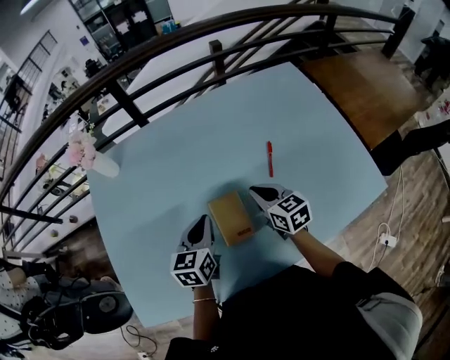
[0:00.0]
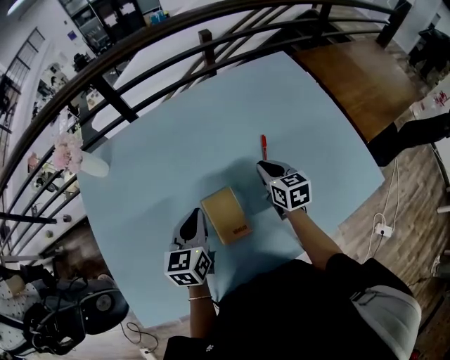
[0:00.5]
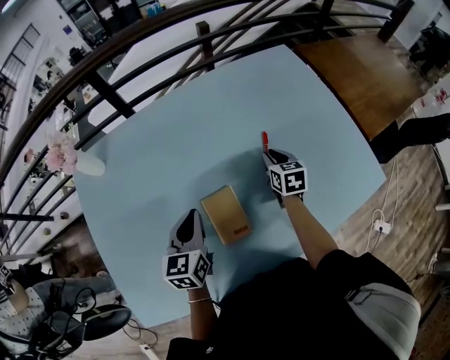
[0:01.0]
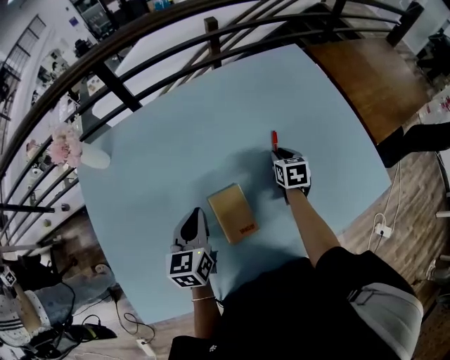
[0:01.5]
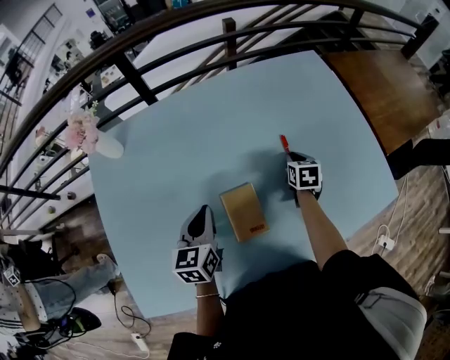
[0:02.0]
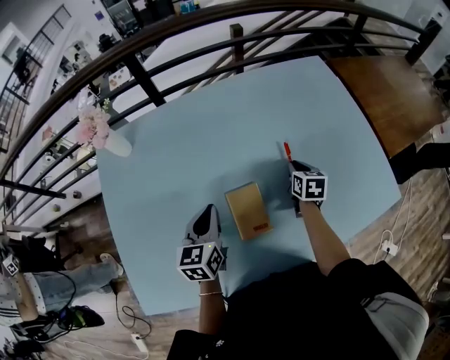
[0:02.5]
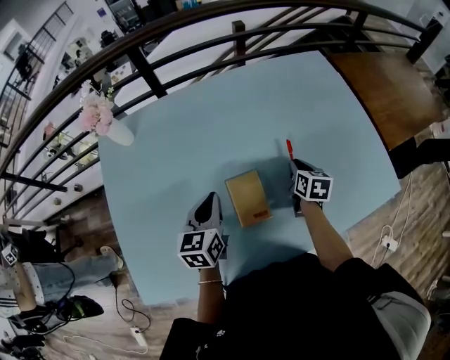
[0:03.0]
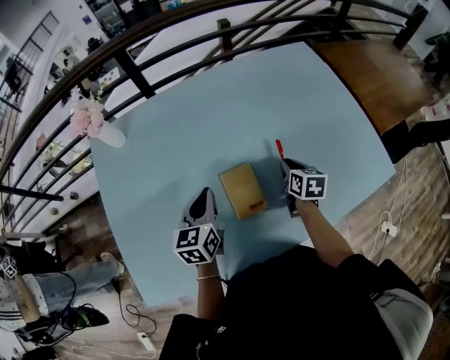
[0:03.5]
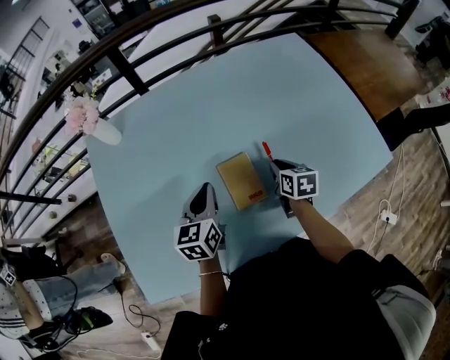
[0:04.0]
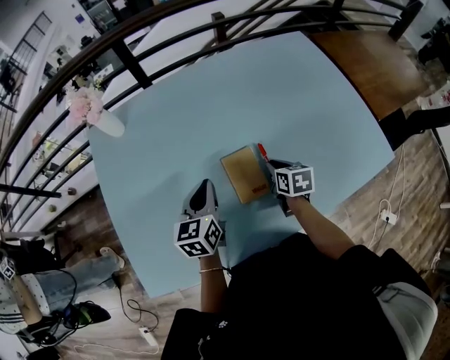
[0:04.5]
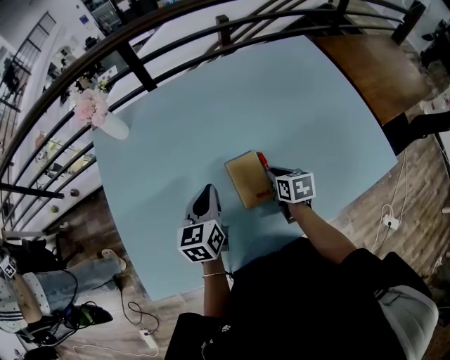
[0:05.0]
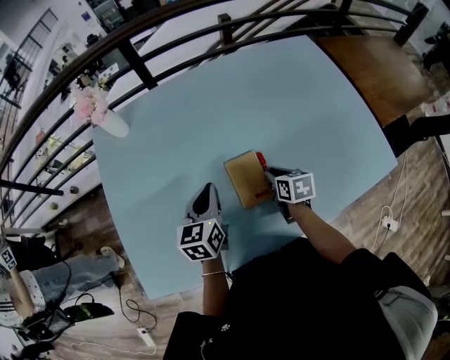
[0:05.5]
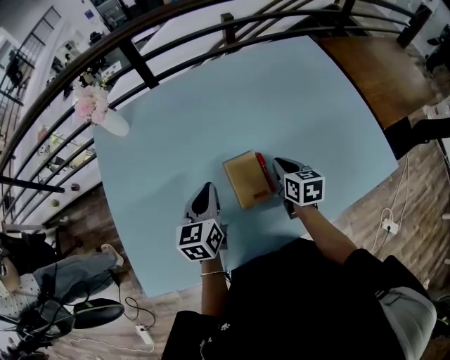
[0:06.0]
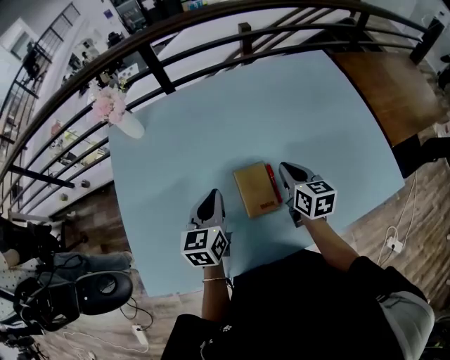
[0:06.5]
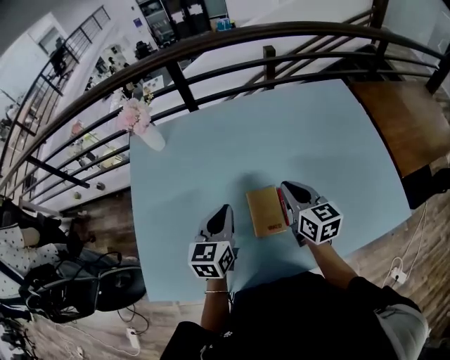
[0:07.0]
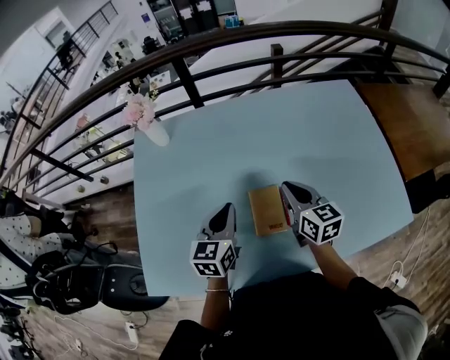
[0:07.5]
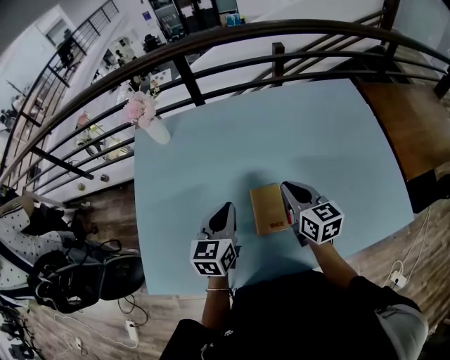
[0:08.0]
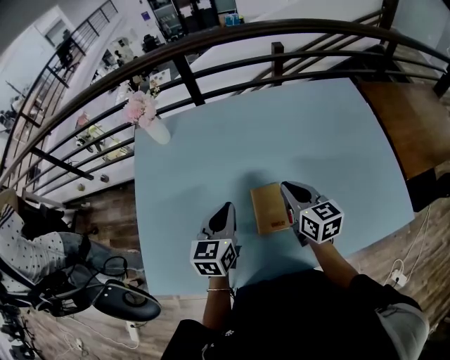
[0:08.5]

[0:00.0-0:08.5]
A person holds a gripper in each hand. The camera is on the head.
0:00.0 to 0:02.0: The right gripper travels forward, to the right and downward by roughly 20 cm, and changes its angle by roughly 40 degrees.
0:02.0 to 0:04.0: The right gripper travels backward and to the left by approximately 15 cm.
0:04.0 to 0:06.5: The right gripper shifts roughly 10 cm upward.
0:06.5 to 0:08.5: The right gripper heads upward, covering approximately 5 cm.

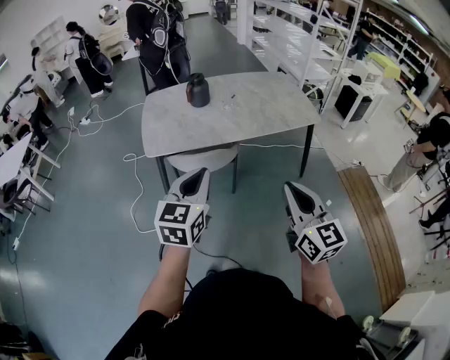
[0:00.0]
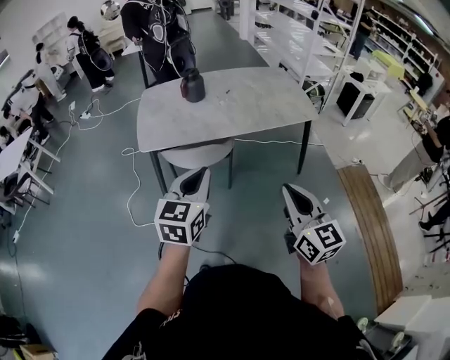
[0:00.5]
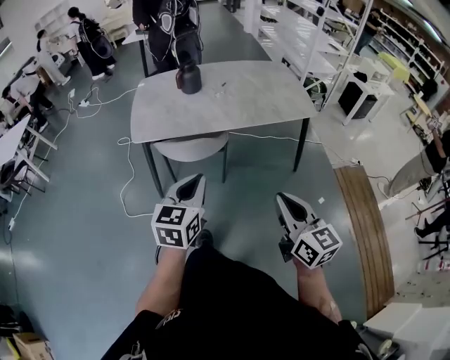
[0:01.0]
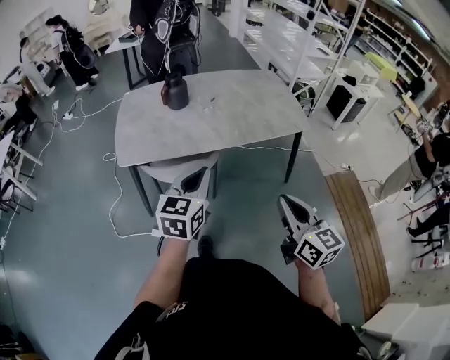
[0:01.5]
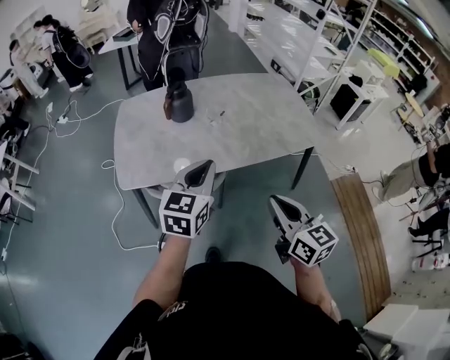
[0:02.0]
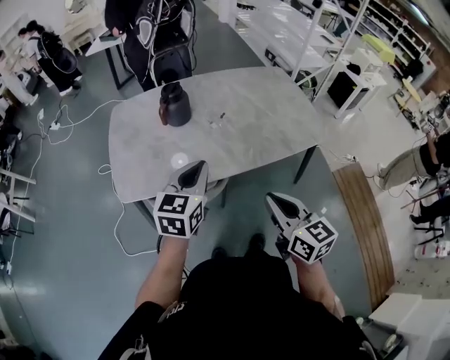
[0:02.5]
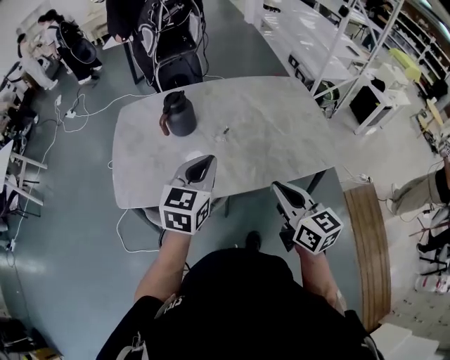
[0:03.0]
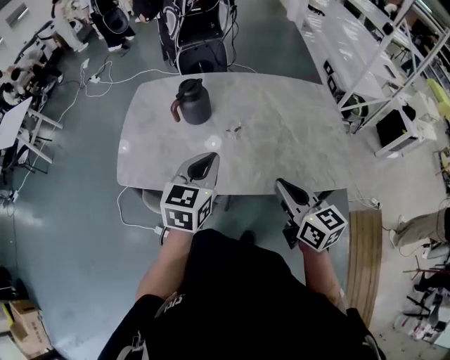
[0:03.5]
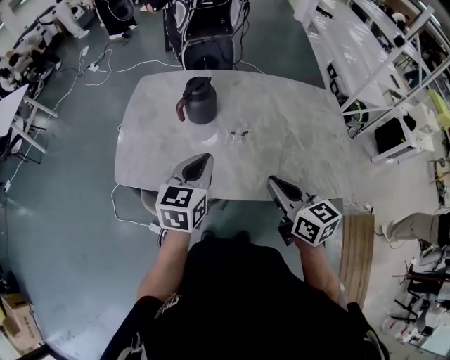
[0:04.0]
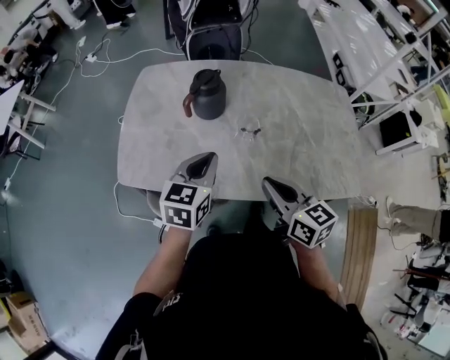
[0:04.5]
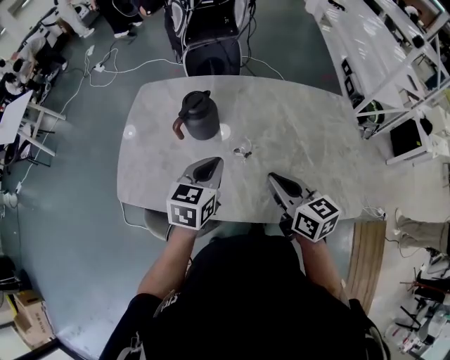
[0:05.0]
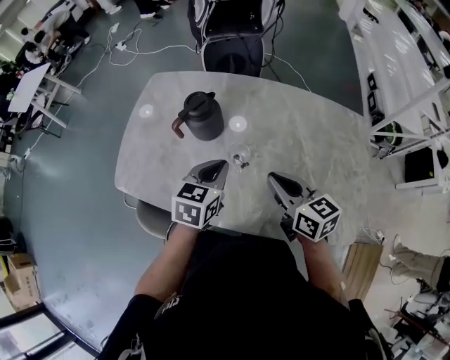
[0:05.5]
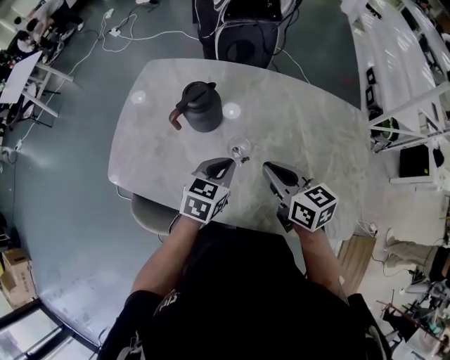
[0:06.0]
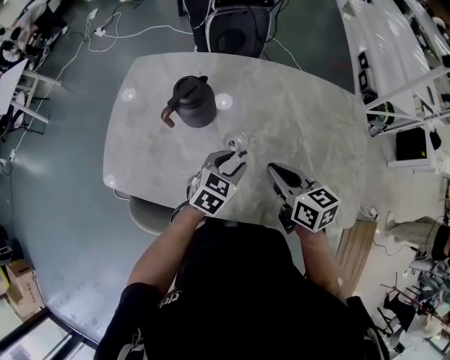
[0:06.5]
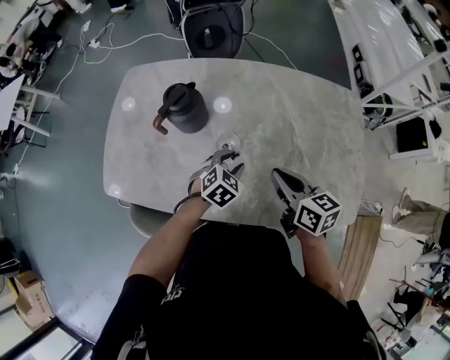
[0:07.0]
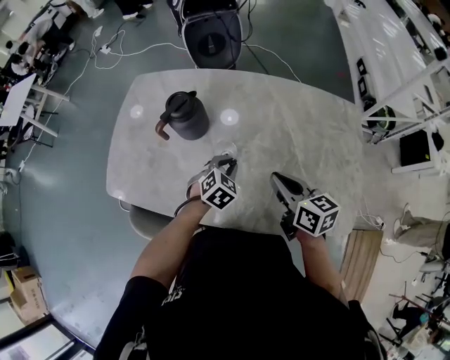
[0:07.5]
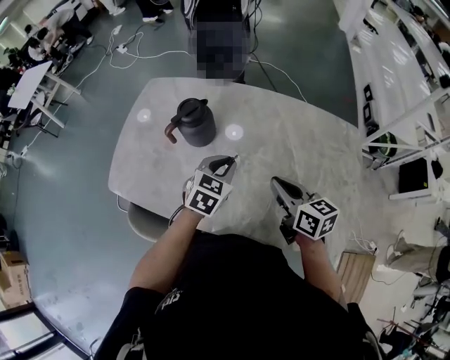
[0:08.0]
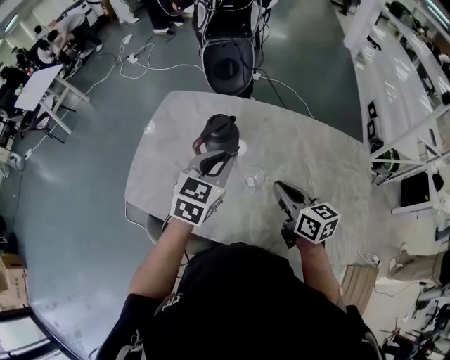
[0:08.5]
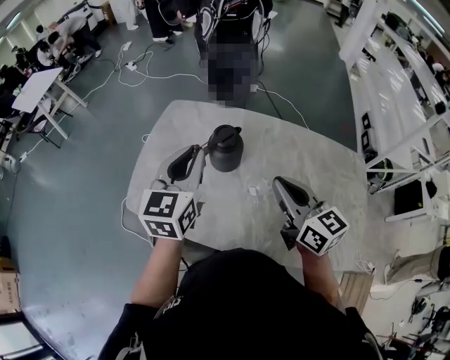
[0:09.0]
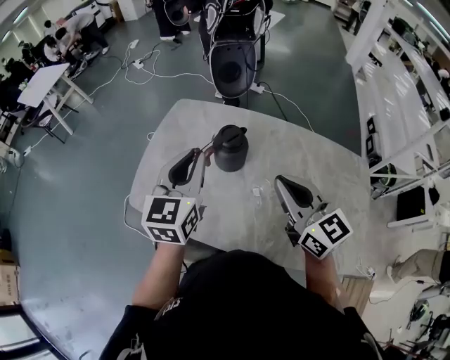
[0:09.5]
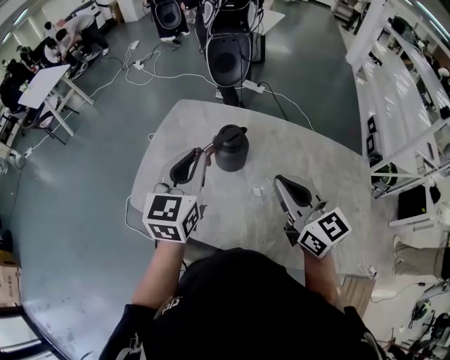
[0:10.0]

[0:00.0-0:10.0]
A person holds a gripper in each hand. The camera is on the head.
0:00.0 to 0:02.0: Both grippers move forward, some 25 cm.
0:02.0 to 0:04.0: Both grippers move forward, about 25 cm. The left gripper changes its angle by approximately 20 degrees. The right gripper rotates some 20 degrees.
0:04.0 to 0:06.0: The left gripper moves forward, downward and to the right, roughly 20 cm. The right gripper moves forward, some 20 cm.
0:06.0 to 0:08.0: The right gripper is displaced to the right by some 5 cm, while the left gripper goes downward and returns, about 10 cm each way, and opens, then closes again.
0:08.0 to 0:10.0: The left gripper goes some 30 cm to the left and upward, and rotates roughly 40 degrees, while the right gripper goes approximately 20 cm upward and to the left, and rotates some 30 degrees.

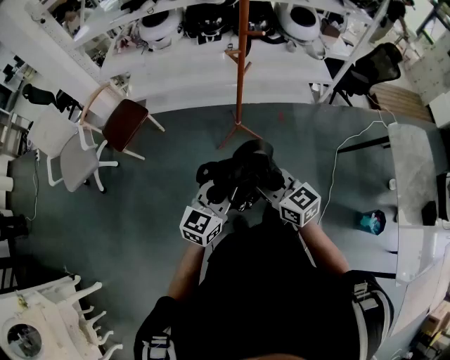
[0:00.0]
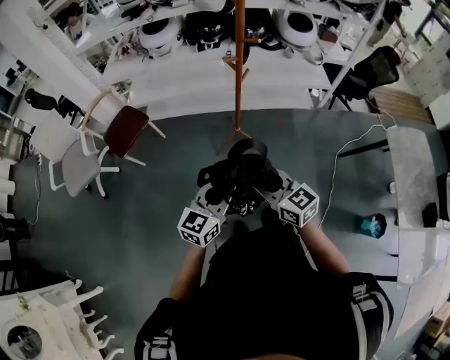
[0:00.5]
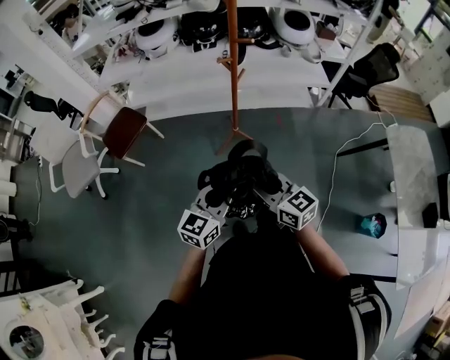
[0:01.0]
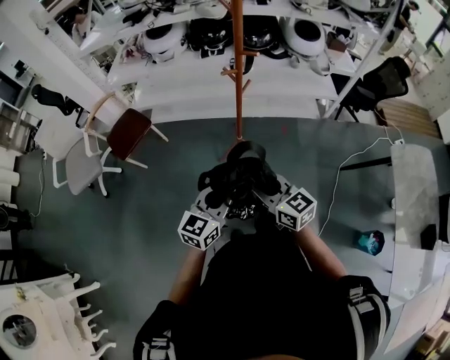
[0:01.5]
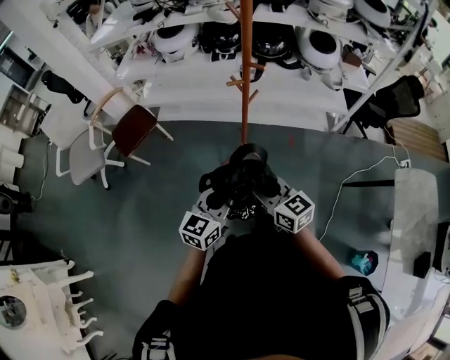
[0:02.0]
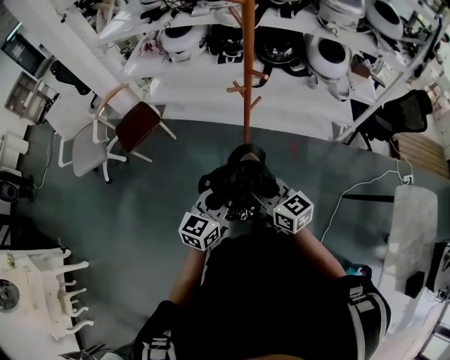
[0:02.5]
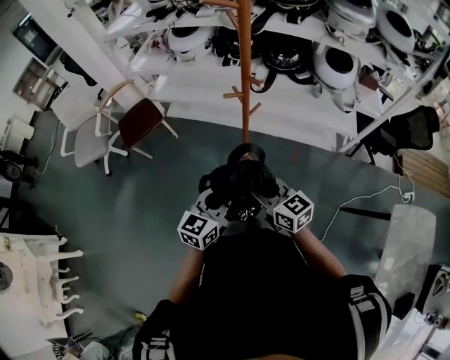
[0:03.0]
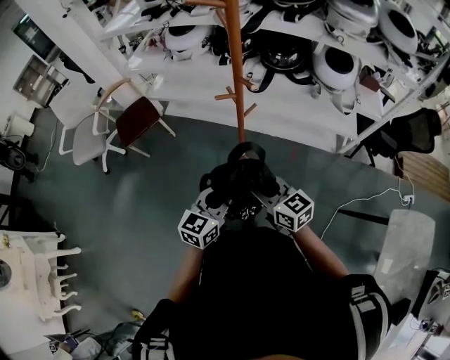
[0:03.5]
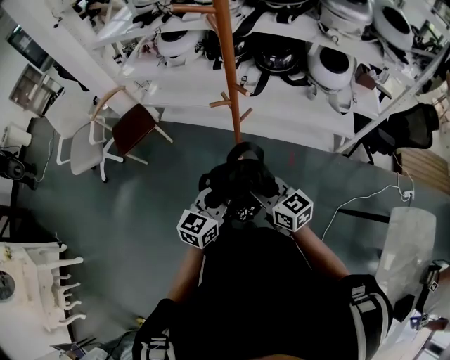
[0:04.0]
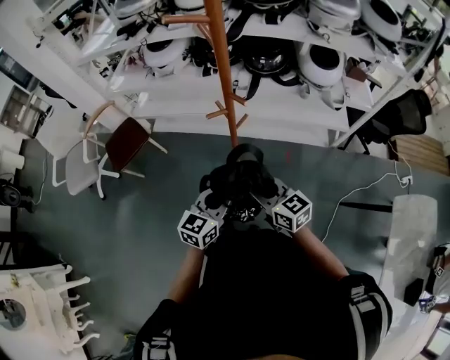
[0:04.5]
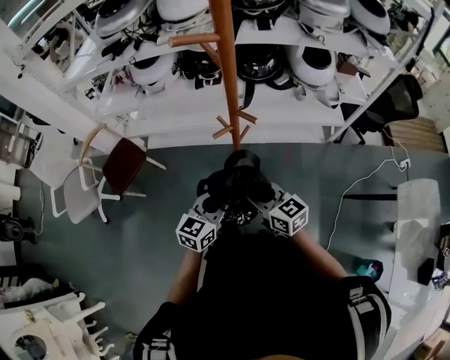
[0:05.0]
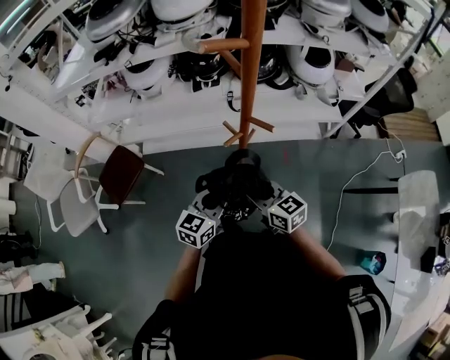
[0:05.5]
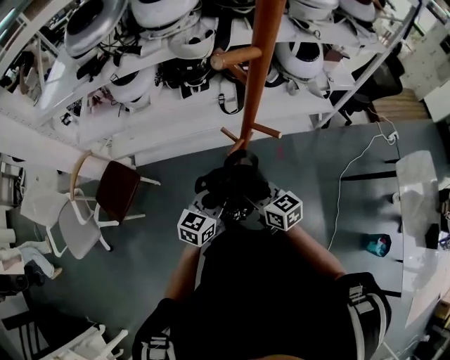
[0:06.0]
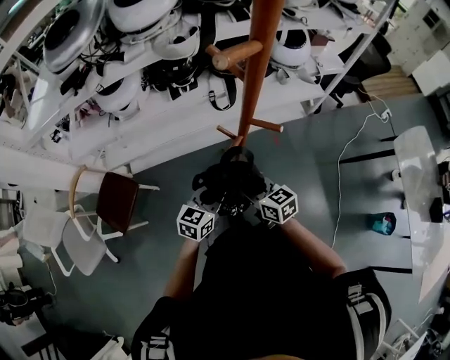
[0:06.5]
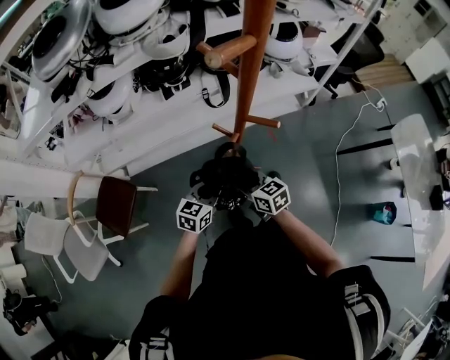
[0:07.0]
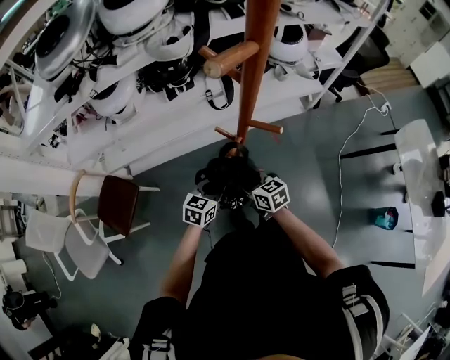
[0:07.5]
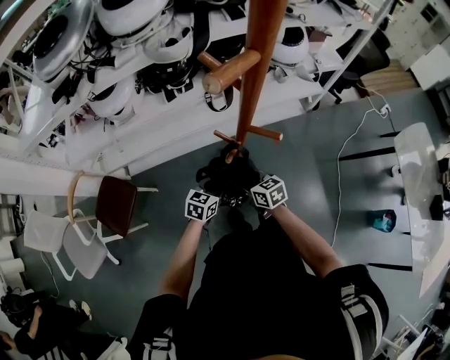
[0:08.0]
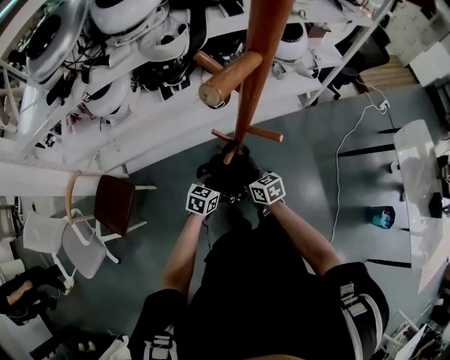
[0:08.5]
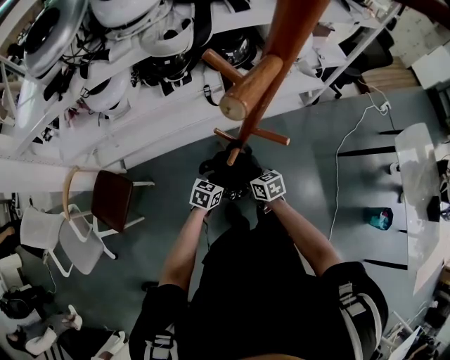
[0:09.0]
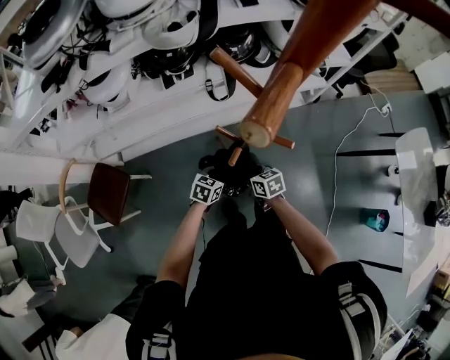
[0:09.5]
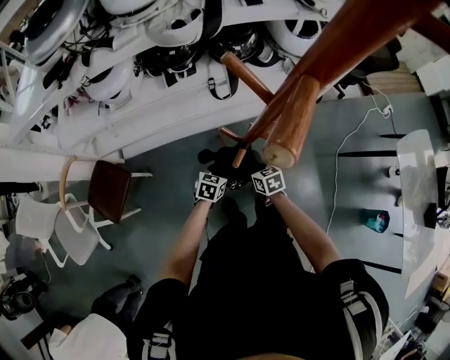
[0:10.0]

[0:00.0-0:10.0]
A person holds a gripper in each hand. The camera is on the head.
0:00.0 to 0:02.0: Both grippers move forward and to the right, some 15 cm.
0:02.0 to 0:04.0: Both grippers travel together to the right and forward, roughly 20 cm.
0:04.0 to 0:06.0: Both grippers travel together forward and to the left, about 30 cm. The right gripper changes its angle by approximately 30 degrees, while the left gripper rotates approximately 30 degrees.
0:06.0 to 0:08.0: The two grippers go some 15 cm downward and forward.
0:08.0 to 0:10.0: The grippers both shift downward and forward by some 10 cm. The left gripper opens.
